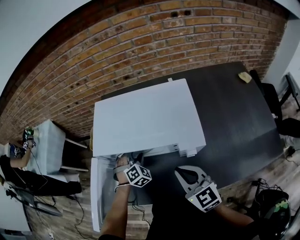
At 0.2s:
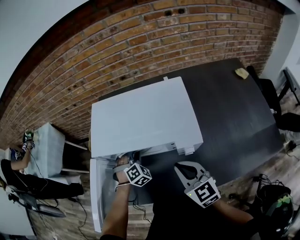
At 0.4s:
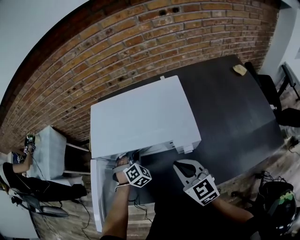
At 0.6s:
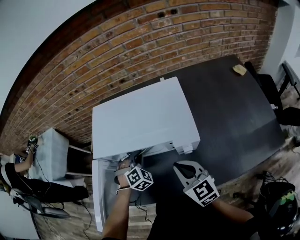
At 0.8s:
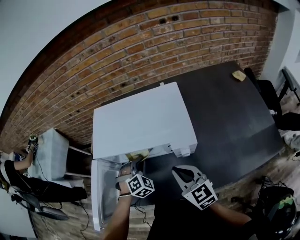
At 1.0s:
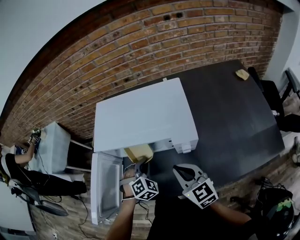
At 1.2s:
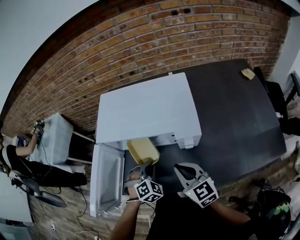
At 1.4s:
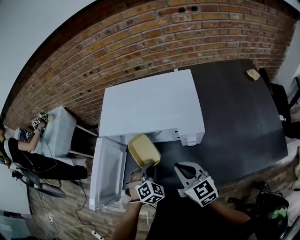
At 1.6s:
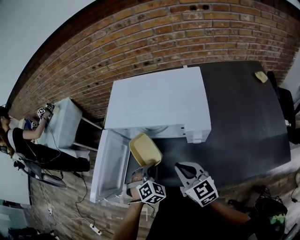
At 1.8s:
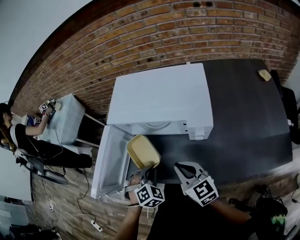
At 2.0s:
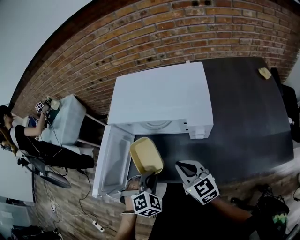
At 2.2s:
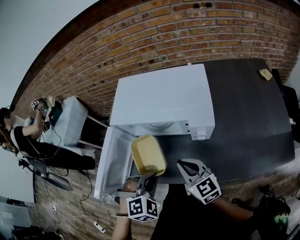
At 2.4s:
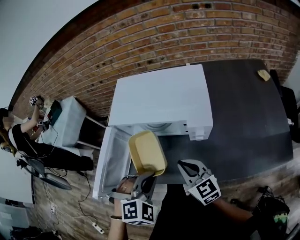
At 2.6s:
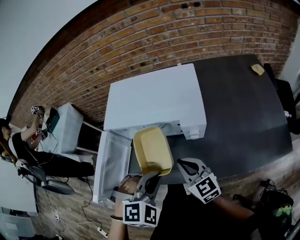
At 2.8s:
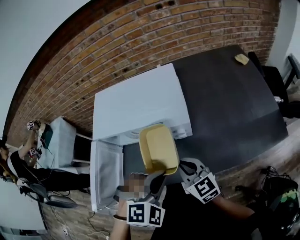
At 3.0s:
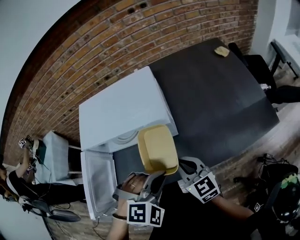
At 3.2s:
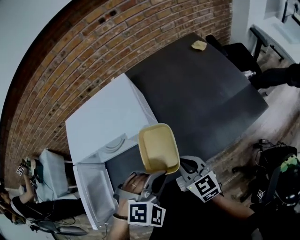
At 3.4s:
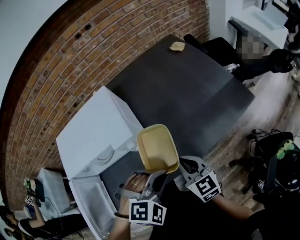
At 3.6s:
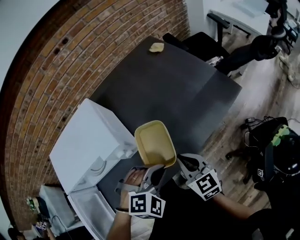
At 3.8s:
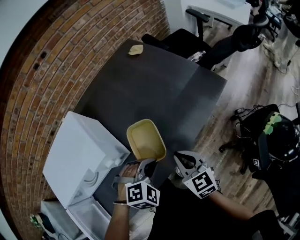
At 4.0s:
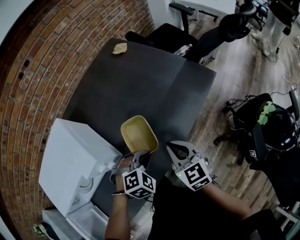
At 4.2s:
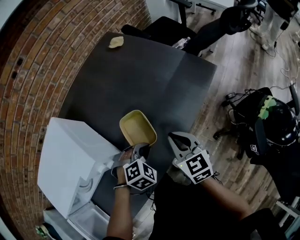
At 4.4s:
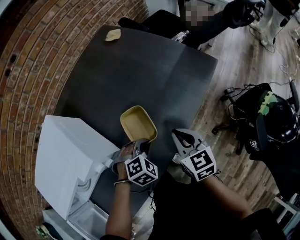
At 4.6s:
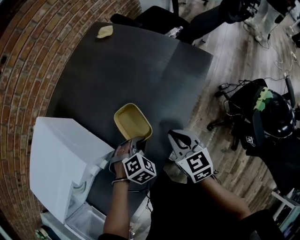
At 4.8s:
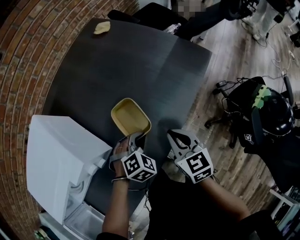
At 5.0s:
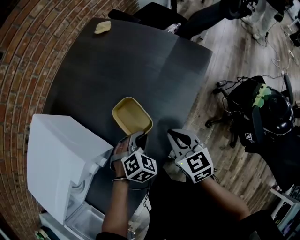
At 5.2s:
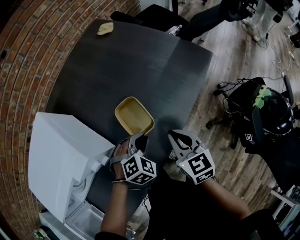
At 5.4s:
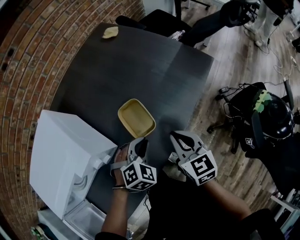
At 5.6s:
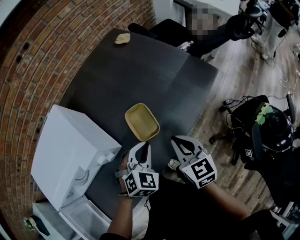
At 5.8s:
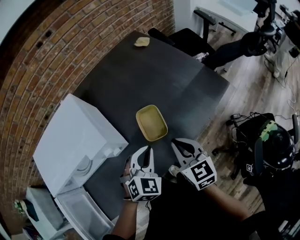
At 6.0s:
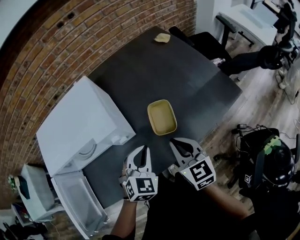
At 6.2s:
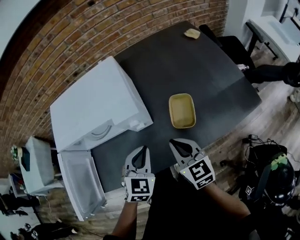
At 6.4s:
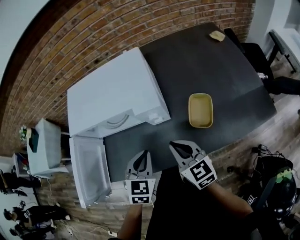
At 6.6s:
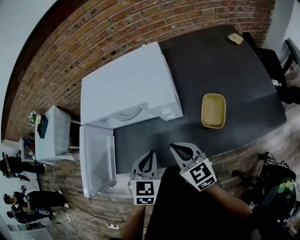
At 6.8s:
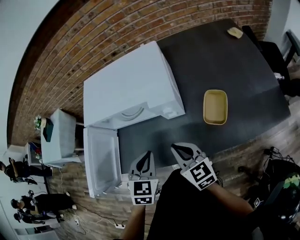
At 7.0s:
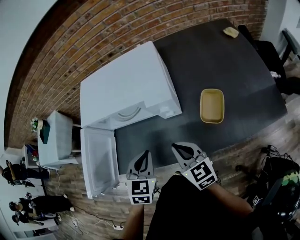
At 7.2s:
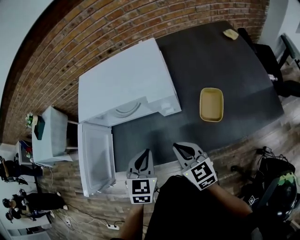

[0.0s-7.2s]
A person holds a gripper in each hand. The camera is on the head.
0.0s to 1.4s: The left gripper shifts approximately 15 cm backward, and closes. Meanwhile the right gripper changes place by approximately 5 cm.
1.4s to 2.8s: The left gripper moves upward, backward and to the right, roughly 20 cm, and swivels approximately 30 degrees.
2.8s to 4.4s: The right gripper moves some 30 cm, and turns by approximately 60 degrees. Meanwhile the left gripper ends up approximately 30 cm from where it was, and turns by roughly 40 degrees.
4.4s to 5.8s: The left gripper moves upward, roughly 10 cm, and rotates some 40 degrees. The right gripper shifts approximately 5 cm upward.
5.8s to 7.2s: The left gripper ends up approximately 25 cm from where it was, and swivels roughly 50 degrees. Meanwhile the right gripper shifts by some 20 cm, and rotates approximately 40 degrees.

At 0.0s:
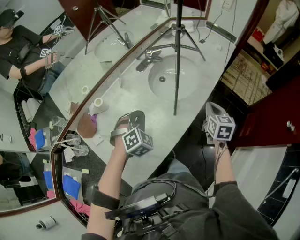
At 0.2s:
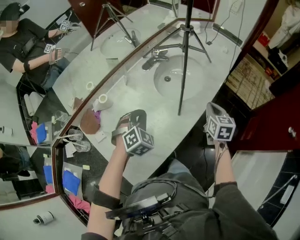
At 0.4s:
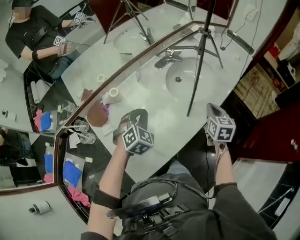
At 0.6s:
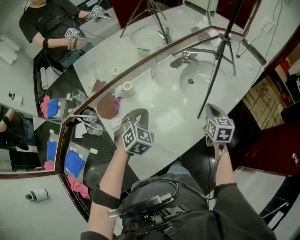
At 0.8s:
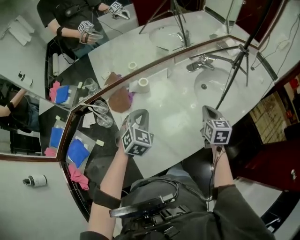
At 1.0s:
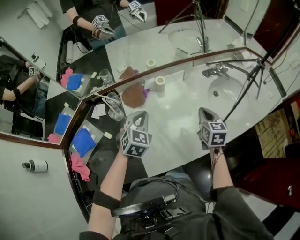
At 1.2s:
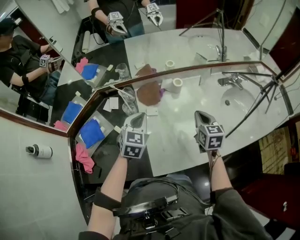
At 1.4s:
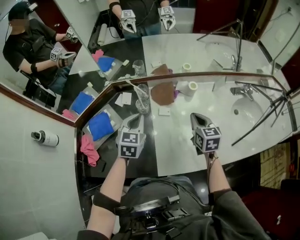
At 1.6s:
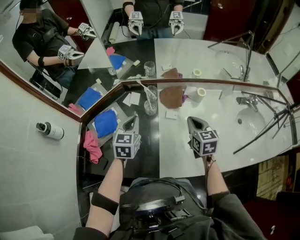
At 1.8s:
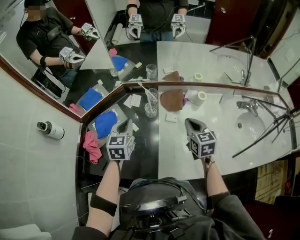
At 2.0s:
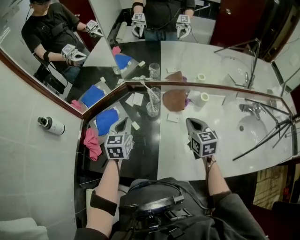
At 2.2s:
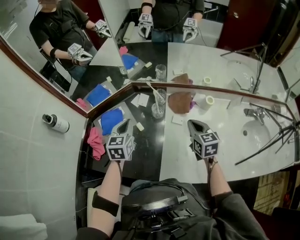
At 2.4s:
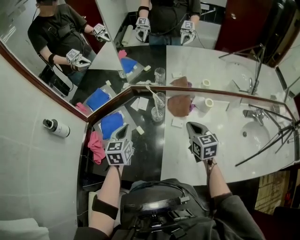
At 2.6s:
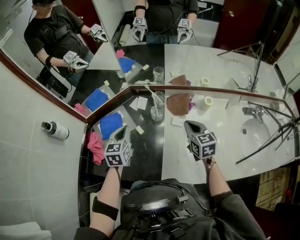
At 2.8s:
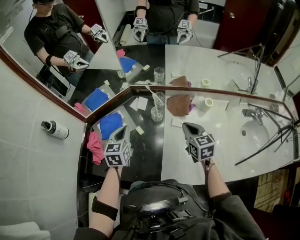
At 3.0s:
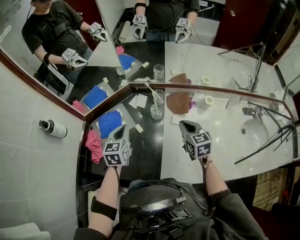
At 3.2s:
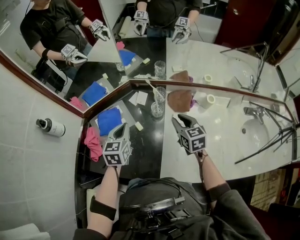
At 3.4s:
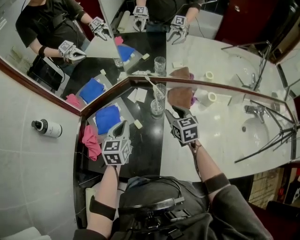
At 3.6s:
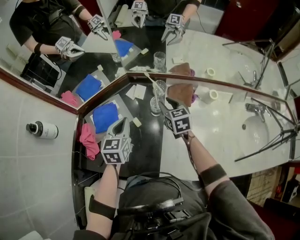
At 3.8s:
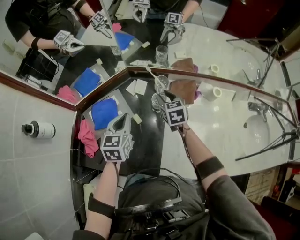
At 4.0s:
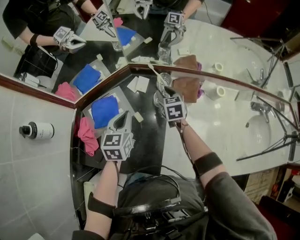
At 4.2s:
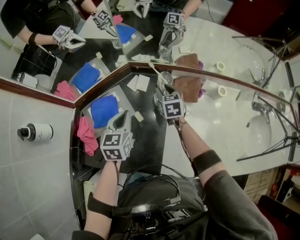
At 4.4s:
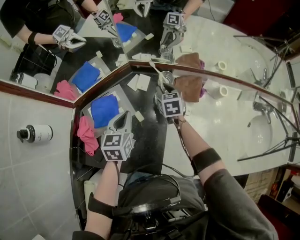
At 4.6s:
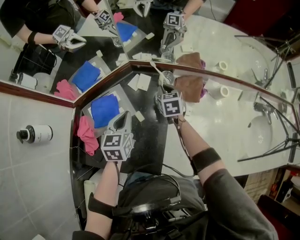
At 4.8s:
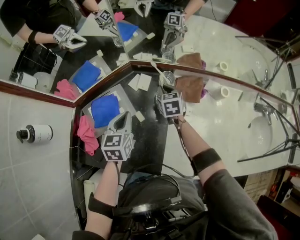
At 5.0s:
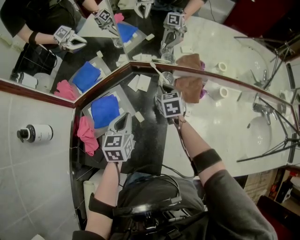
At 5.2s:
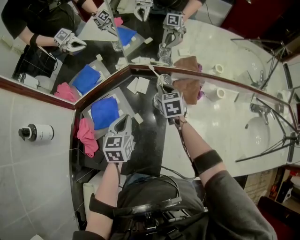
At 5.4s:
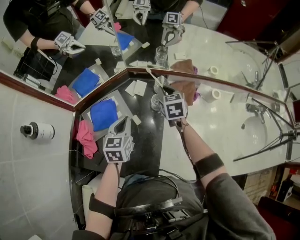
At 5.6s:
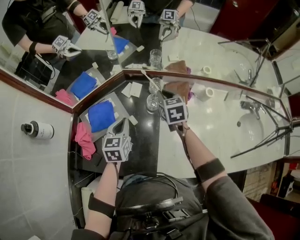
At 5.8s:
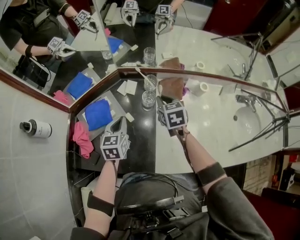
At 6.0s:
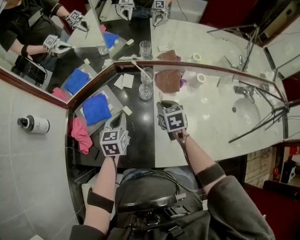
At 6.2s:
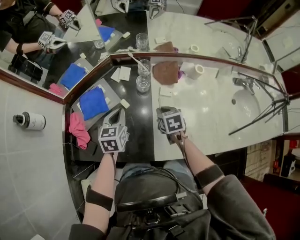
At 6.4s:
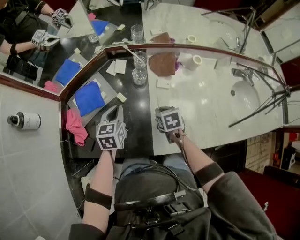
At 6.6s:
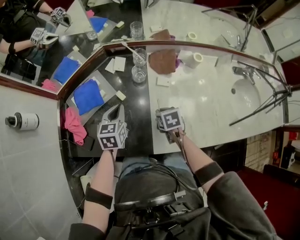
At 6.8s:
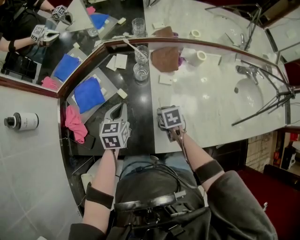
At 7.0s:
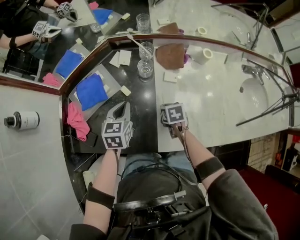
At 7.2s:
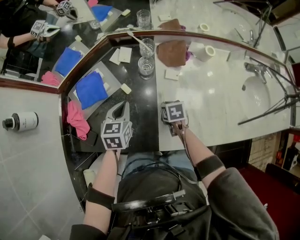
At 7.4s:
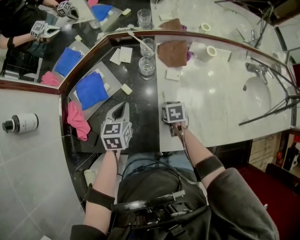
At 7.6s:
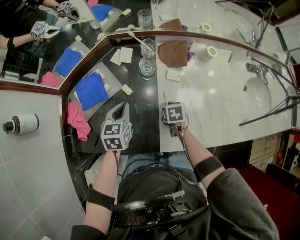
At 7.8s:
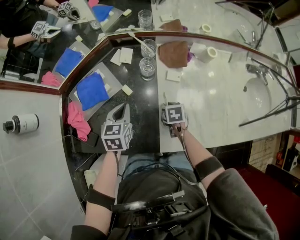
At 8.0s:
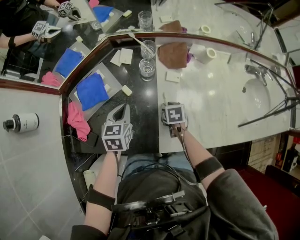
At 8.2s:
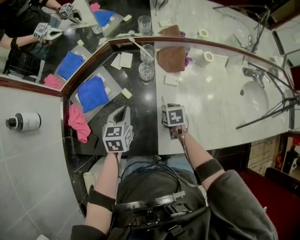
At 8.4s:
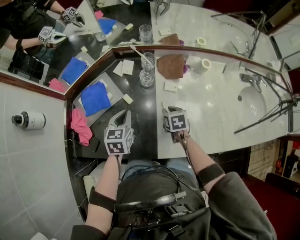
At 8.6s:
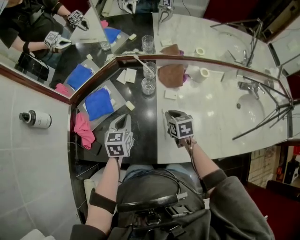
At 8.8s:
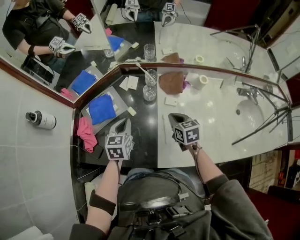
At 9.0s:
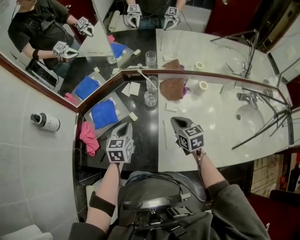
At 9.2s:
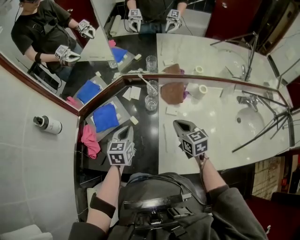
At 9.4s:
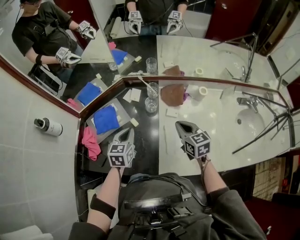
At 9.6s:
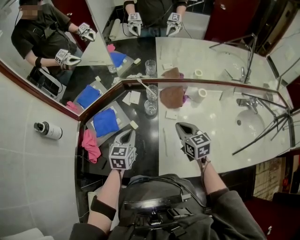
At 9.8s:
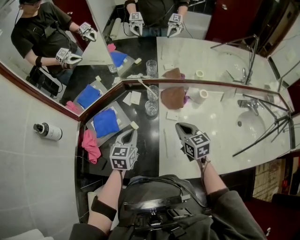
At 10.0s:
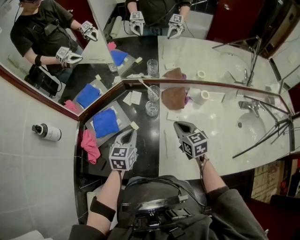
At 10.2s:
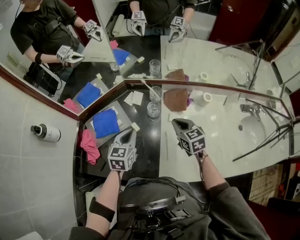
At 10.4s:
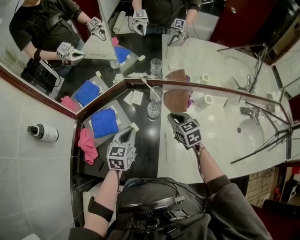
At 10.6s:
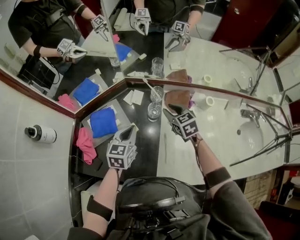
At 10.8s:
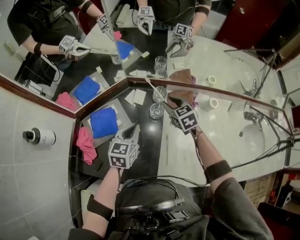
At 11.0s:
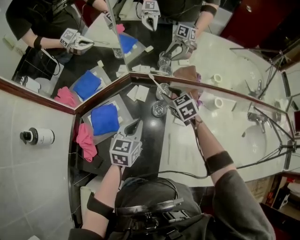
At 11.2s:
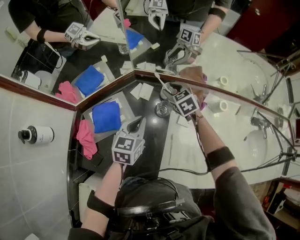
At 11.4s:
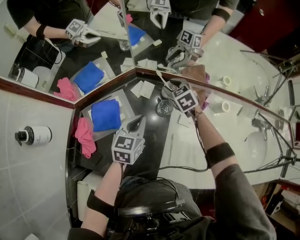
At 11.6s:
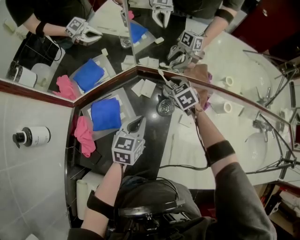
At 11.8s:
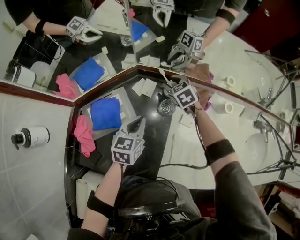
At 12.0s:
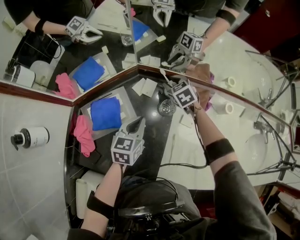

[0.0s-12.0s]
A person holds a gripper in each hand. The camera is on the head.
0.0s to 1.6s: The pair of grippers is taken about 50 cm. The right gripper changes its angle by approximately 60 degrees. Meanwhile the left gripper twists approximately 70 degrees counterclockwise, seen from behind.
1.6s to 3.0s: Both grippers move to the left, some 10 cm.
3.0s to 4.4s: The left gripper travels downward by about 5 cm. The right gripper heads forward, downward and to the left, covering approximately 25 cm, and opens up.
4.4s to 6.0s: The right gripper moves backward, roughly 15 cm. The left gripper travels backward by roughly 5 cm.
6.0s to 7.6s: The left gripper moves downward, approximately 5 cm. The right gripper shifts roughly 20 cm downward and backward, and changes its angle by about 30 degrees.
7.6s to 9.0s: The right gripper is displaced upward by about 20 cm, tilts its fingers about 30 degrees upward, and closes up. Meanwhile the left gripper shifts some 5 cm upward.
9.0s to 10.4s: The right gripper heads forward, covering roughly 10 cm.
10.4s to 12.0s: The right gripper travels forward and downward by approximately 20 cm, rotates about 20 degrees, and opens its fingers. Meanwhile the left gripper travels forward by approximately 5 cm.

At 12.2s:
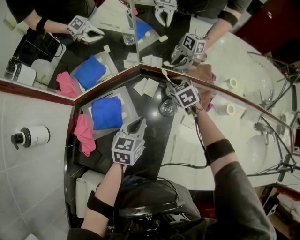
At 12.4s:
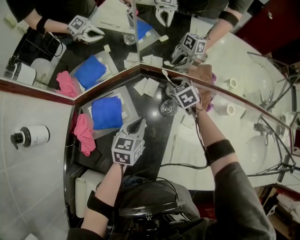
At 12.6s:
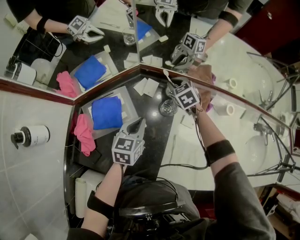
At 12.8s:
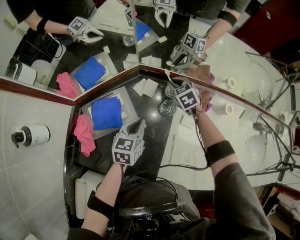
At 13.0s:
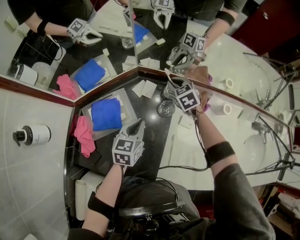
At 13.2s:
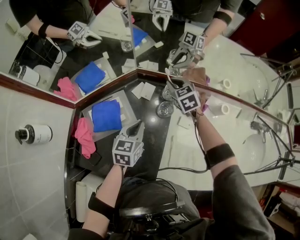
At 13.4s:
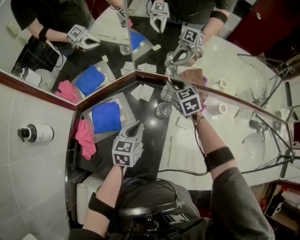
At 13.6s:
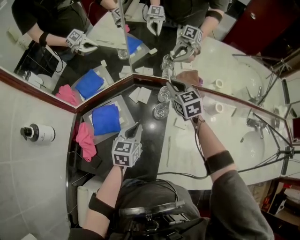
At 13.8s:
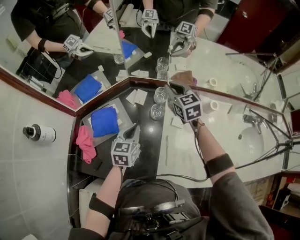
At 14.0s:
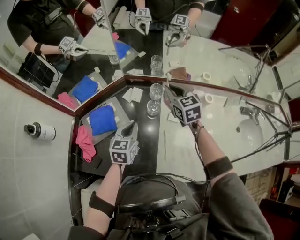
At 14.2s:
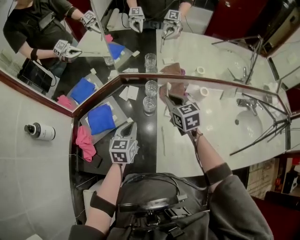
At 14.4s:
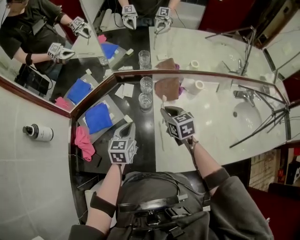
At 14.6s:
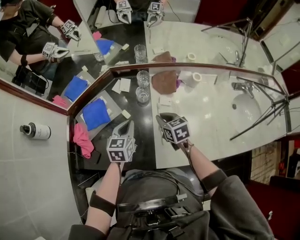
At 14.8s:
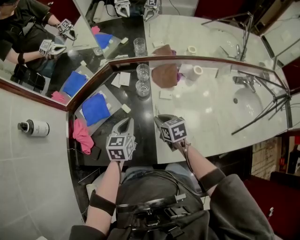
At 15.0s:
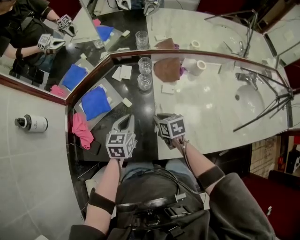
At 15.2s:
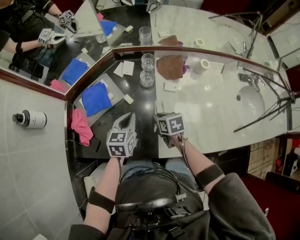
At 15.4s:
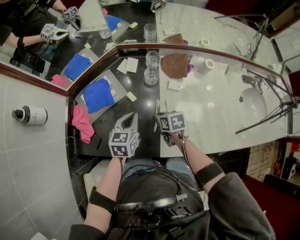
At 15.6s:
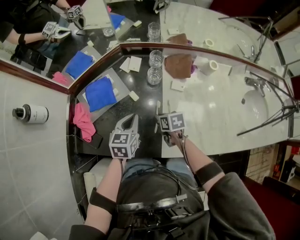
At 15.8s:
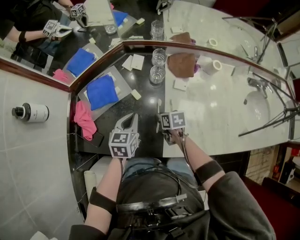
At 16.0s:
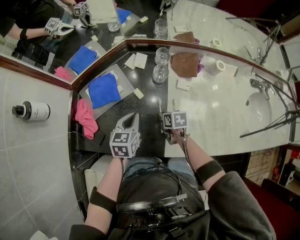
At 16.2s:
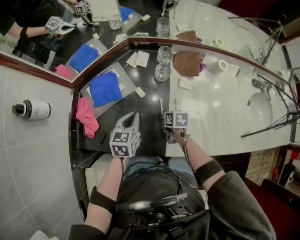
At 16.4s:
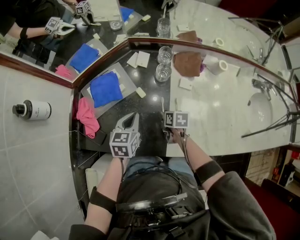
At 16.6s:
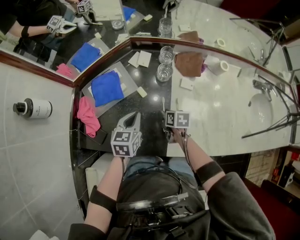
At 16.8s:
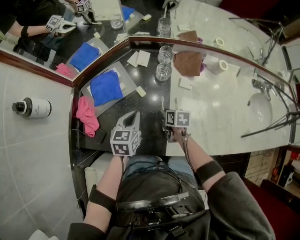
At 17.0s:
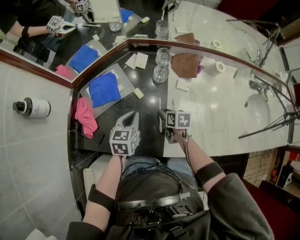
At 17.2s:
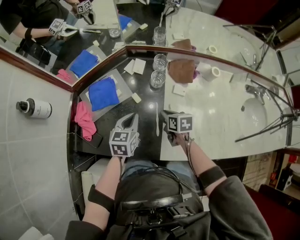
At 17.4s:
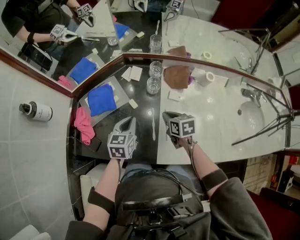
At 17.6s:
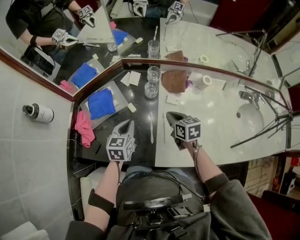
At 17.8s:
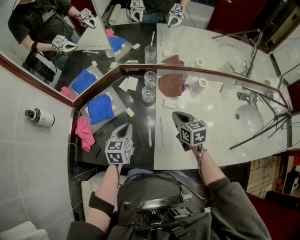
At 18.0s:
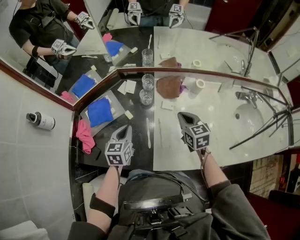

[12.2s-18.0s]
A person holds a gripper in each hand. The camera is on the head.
12.2s to 13.6s: The right gripper heads upward, covering some 15 cm, and rotates about 20 degrees.
13.6s to 15.0s: The left gripper moves backward, roughly 10 cm; the right gripper travels backward and downward by some 35 cm, and changes its angle by some 40 degrees.
15.0s to 16.6s: The left gripper ends up about 5 cm from where it was; the right gripper moves downward, about 10 cm, and opens its fingers.
16.6s to 18.0s: The right gripper shifts approximately 25 cm upward and to the right, turns by some 40 degrees, and closes, while the left gripper is displaced upward by roughly 5 cm.
